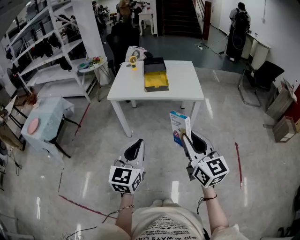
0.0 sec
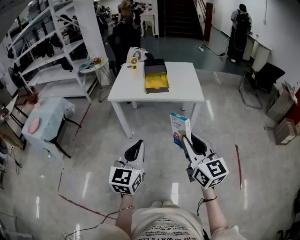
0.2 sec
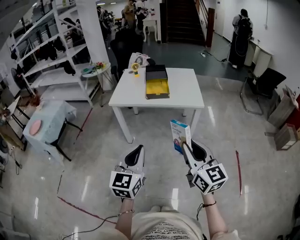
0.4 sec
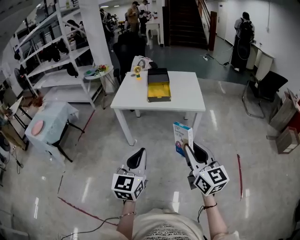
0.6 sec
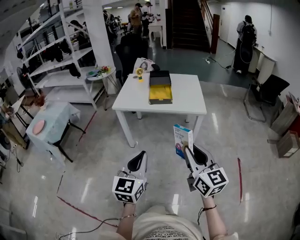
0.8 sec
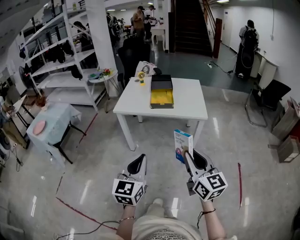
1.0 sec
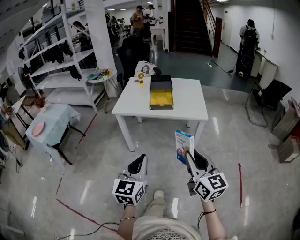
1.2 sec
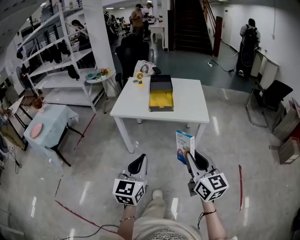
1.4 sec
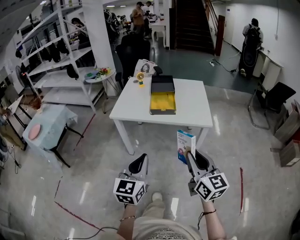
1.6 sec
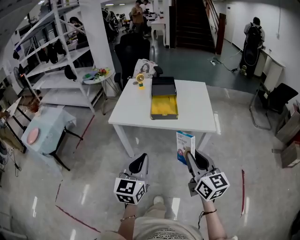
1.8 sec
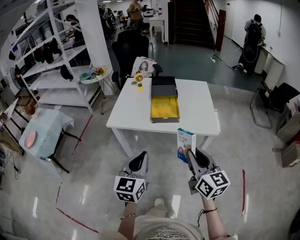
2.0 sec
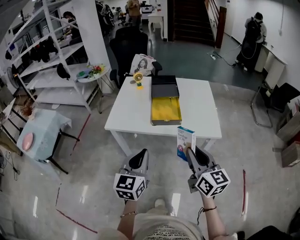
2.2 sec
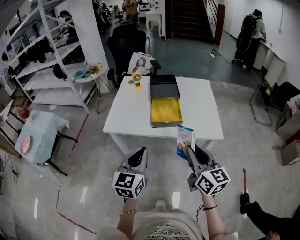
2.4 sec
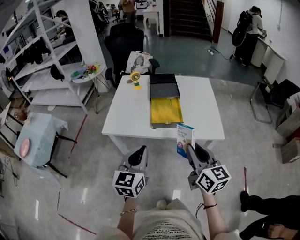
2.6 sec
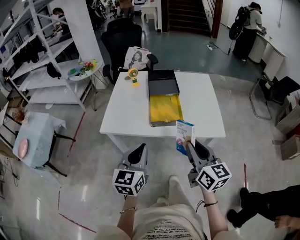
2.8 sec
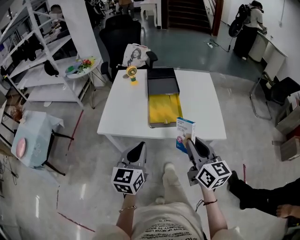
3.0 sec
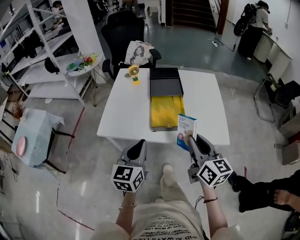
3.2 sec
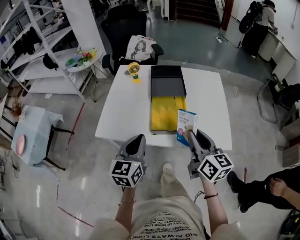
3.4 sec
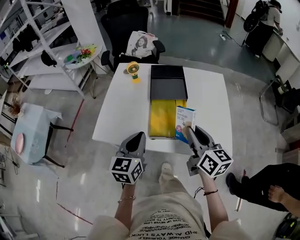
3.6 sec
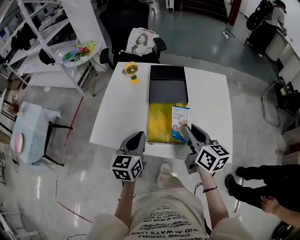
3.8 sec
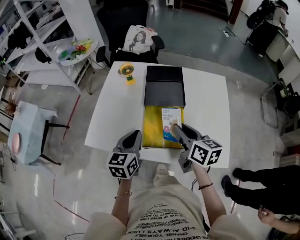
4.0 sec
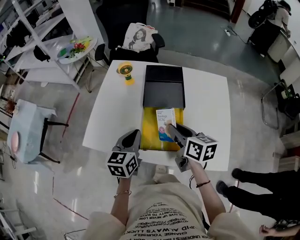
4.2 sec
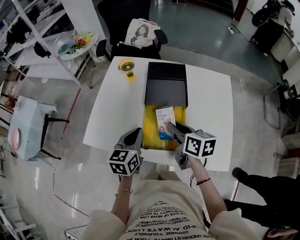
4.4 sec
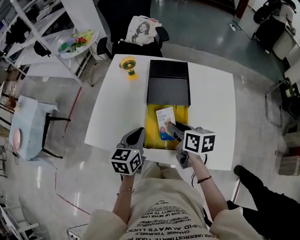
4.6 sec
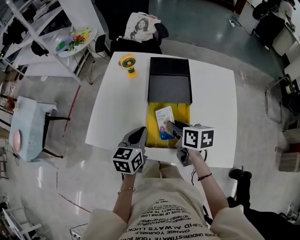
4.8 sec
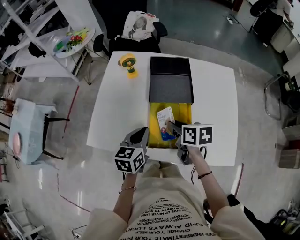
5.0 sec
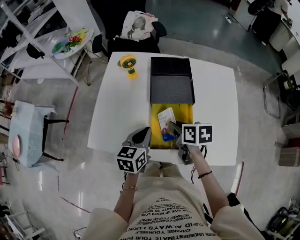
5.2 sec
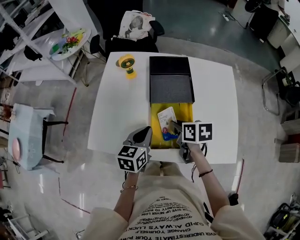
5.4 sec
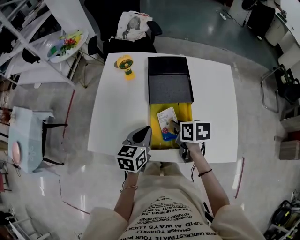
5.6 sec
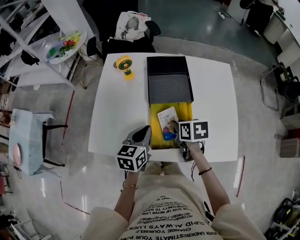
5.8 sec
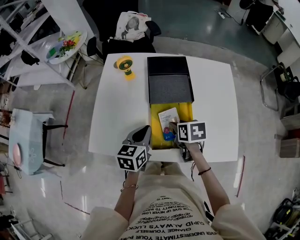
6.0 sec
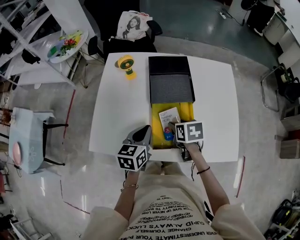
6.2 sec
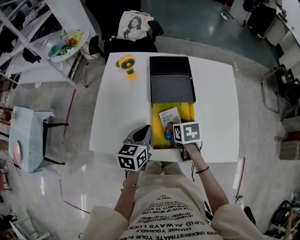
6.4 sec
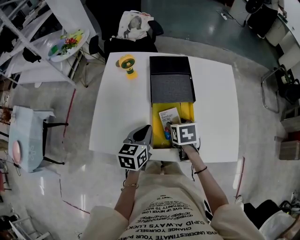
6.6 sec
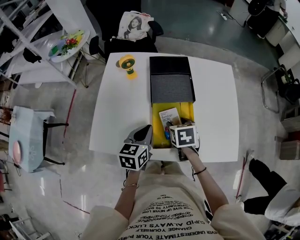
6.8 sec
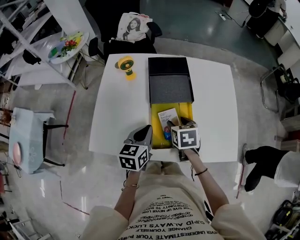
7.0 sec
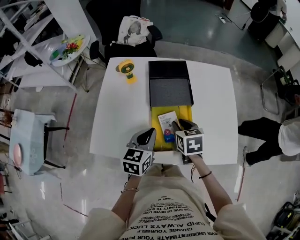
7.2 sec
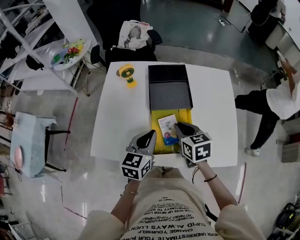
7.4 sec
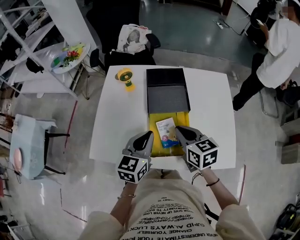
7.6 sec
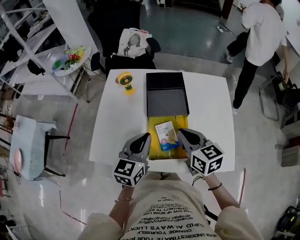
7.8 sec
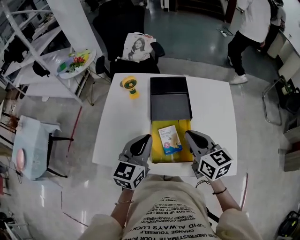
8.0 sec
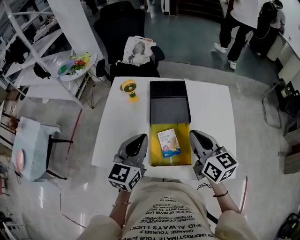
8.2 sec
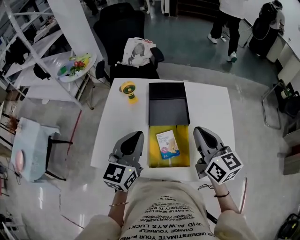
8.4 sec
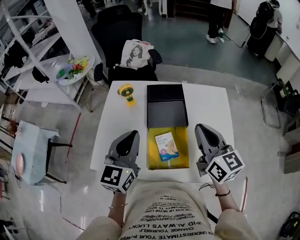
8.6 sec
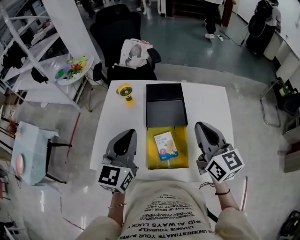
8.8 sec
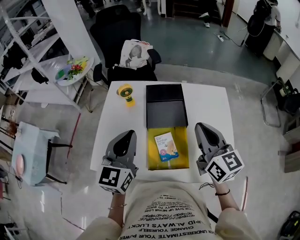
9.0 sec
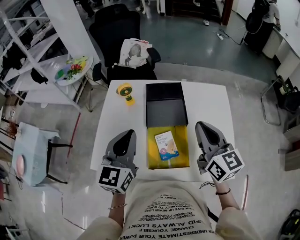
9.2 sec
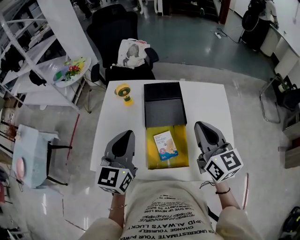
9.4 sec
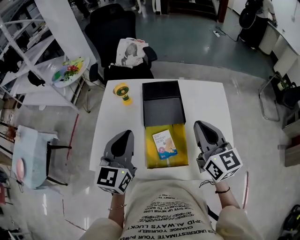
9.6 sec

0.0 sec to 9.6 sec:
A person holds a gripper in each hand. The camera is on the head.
0.0 sec to 1.6 sec: The two grippers go approximately 10 cm forward.
1.6 sec to 3.2 sec: Both grippers travel together forward, roughly 30 cm.
3.2 sec to 4.8 sec: The grippers both shift forward and downward by roughly 25 cm. The right gripper tilts its fingers approximately 30 degrees downward.
4.8 sec to 6.4 sec: The right gripper moves downward, some 5 cm, swivels approximately 30 degrees, and opens up.
6.4 sec to 8.0 sec: Both grippers move upward, some 15 cm. The left gripper turns by some 20 degrees; the right gripper tips its fingers upward by approximately 40 degrees, and closes its fingers.
8.0 sec to 9.6 sec: The right gripper heads upward and to the right, covering approximately 10 cm; the left gripper heads upward, covering roughly 5 cm.

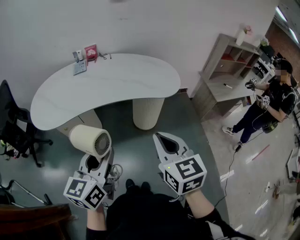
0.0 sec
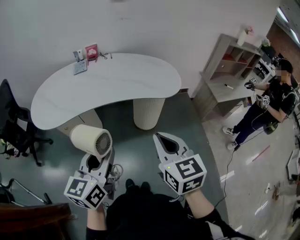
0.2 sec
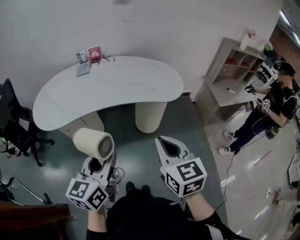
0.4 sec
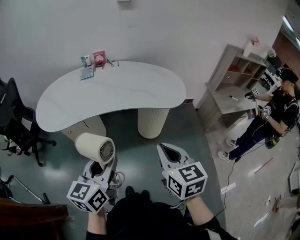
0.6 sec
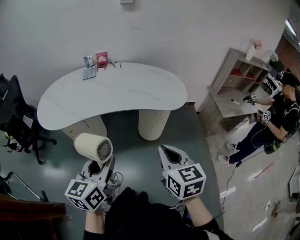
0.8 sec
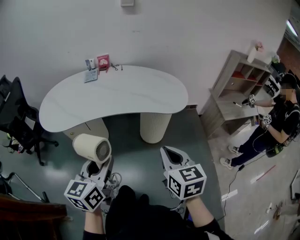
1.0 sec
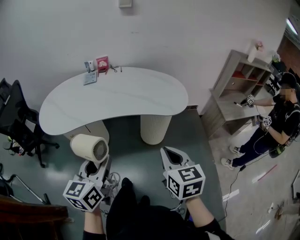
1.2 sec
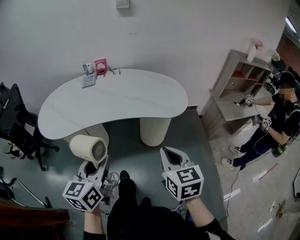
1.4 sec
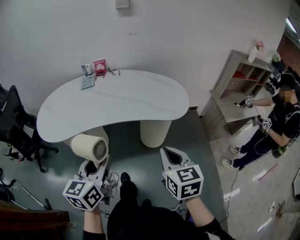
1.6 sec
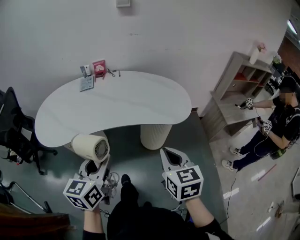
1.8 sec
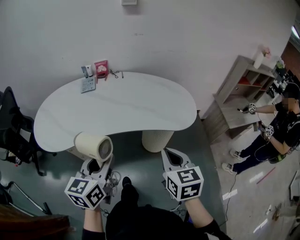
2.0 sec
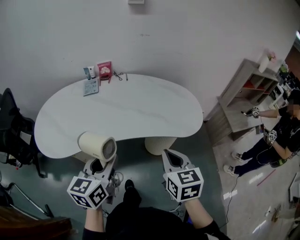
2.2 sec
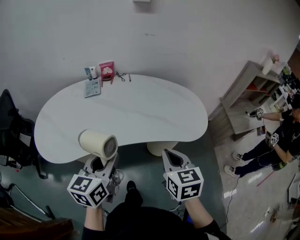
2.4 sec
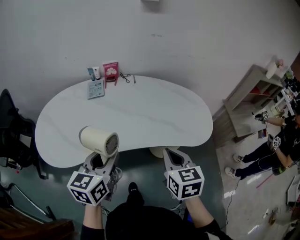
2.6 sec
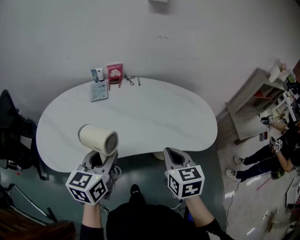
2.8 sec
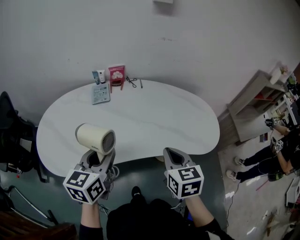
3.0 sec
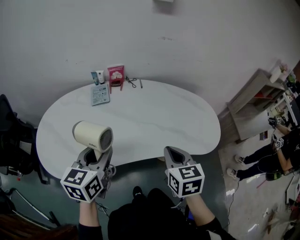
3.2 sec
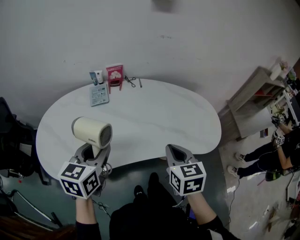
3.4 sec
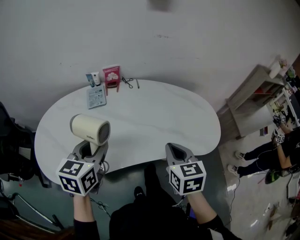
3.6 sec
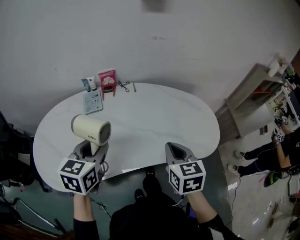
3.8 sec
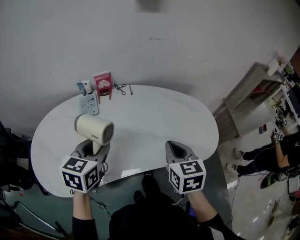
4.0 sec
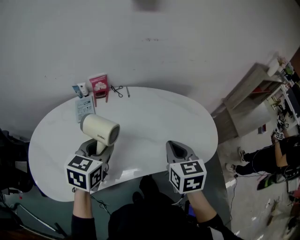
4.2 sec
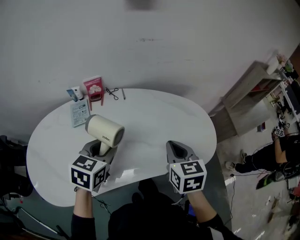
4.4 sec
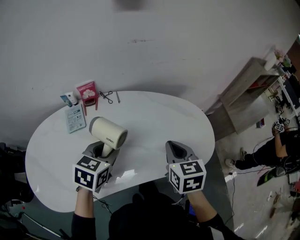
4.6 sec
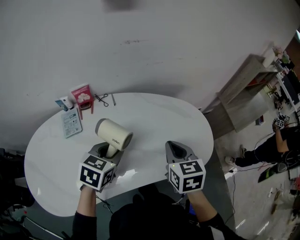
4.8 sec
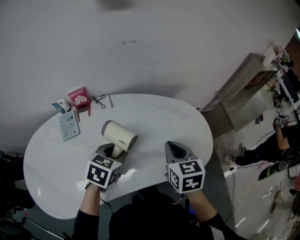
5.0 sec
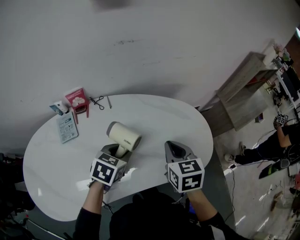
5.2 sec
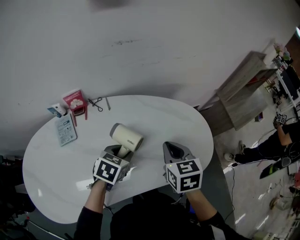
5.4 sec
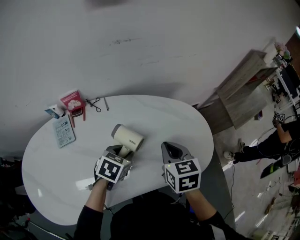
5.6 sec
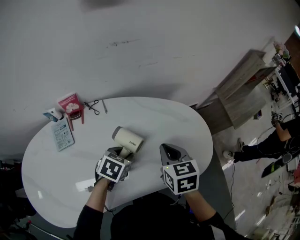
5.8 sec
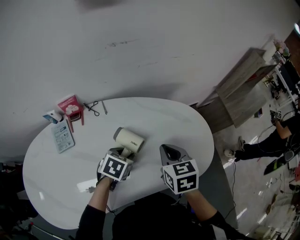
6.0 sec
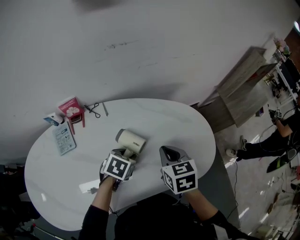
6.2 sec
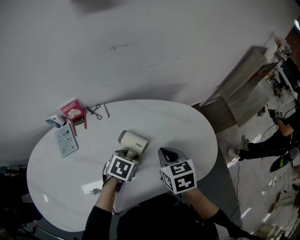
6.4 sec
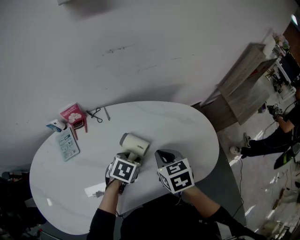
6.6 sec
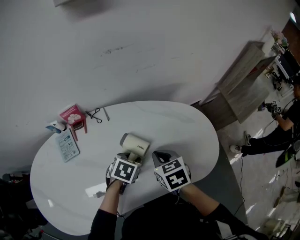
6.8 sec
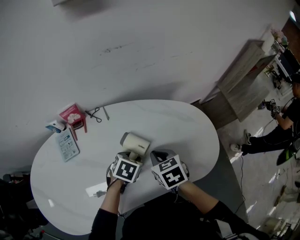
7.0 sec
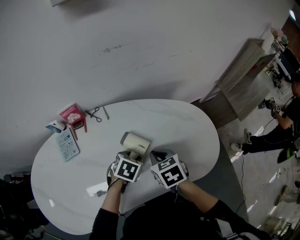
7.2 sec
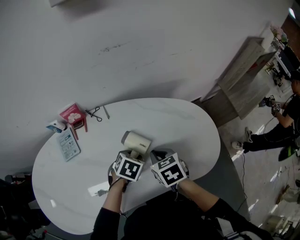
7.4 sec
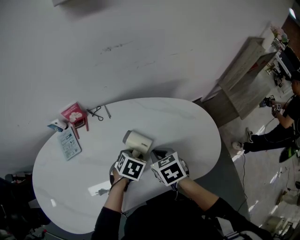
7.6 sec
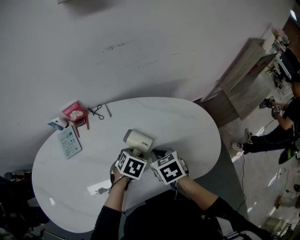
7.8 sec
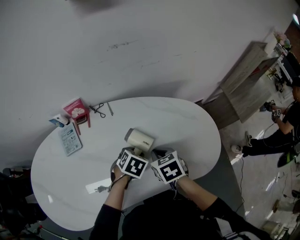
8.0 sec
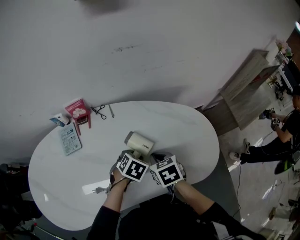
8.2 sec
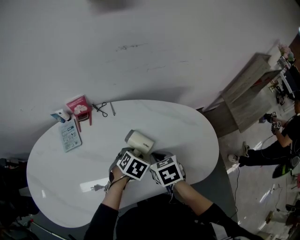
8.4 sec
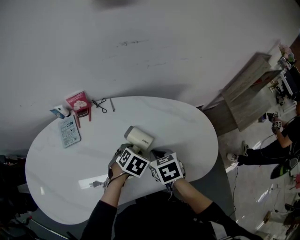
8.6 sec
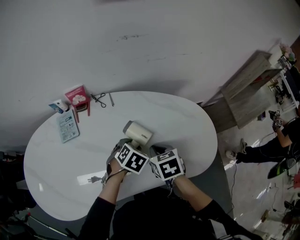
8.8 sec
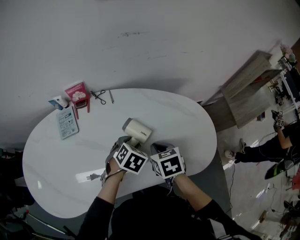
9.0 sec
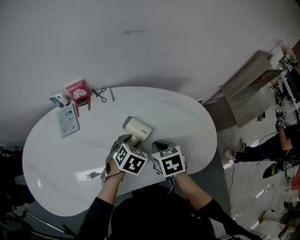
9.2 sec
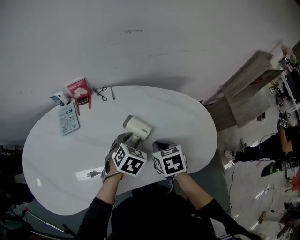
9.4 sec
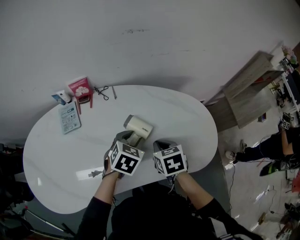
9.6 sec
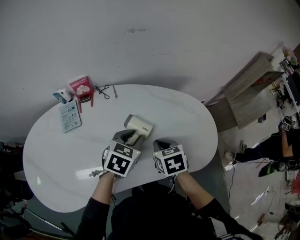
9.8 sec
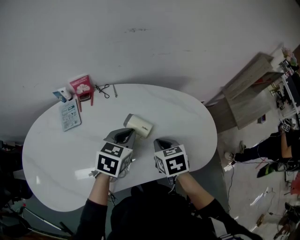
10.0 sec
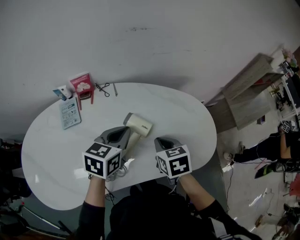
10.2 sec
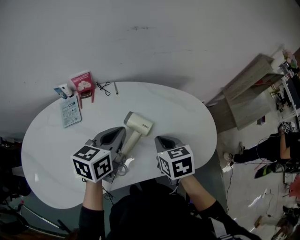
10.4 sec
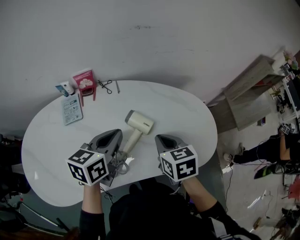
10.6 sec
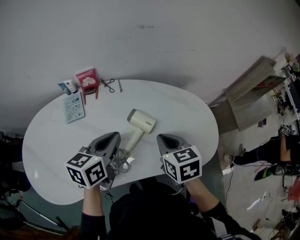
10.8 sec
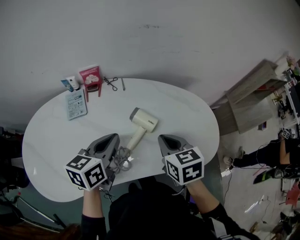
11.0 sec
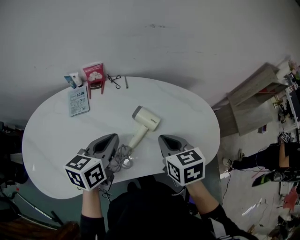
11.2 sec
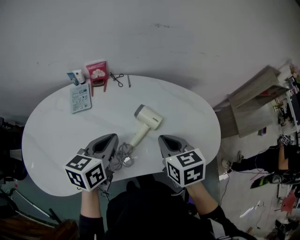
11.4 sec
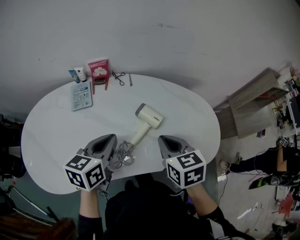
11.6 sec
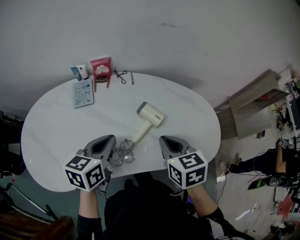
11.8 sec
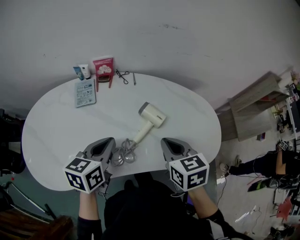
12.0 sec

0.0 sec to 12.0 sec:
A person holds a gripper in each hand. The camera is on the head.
0.0 sec to 1.6 sec: Both grippers travel together forward, roughly 5 cm.
1.6 sec to 3.0 sec: Both grippers travel together forward and to the left, some 30 cm.
3.0 sec to 4.4 sec: The two grippers go approximately 15 cm forward. The left gripper swivels some 30 degrees.
4.4 sec to 6.0 sec: The right gripper heads forward and downward, covering about 10 cm, while the left gripper moves downward, forward and to the right, roughly 20 cm, and turns by about 30 degrees.
6.0 sec to 7.6 sec: The right gripper shifts some 10 cm downward and to the left.
7.6 sec to 9.0 sec: The grippers move only a little.
9.0 sec to 10.4 sec: The right gripper heads upward, covering approximately 5 cm. The left gripper moves upward, approximately 15 cm, tilts its fingers some 40 degrees upward, and closes.
10.4 sec to 12.0 sec: The left gripper moves backward and to the left, about 15 cm. The right gripper is displaced backward and upward by approximately 5 cm.

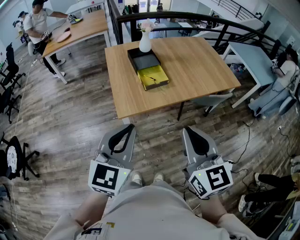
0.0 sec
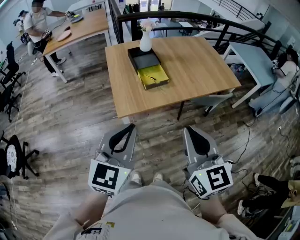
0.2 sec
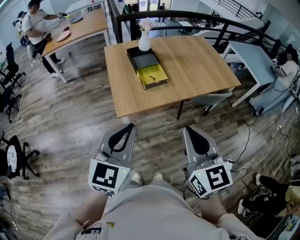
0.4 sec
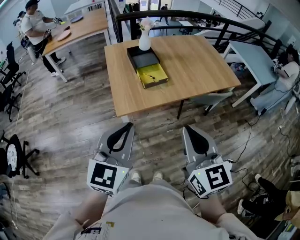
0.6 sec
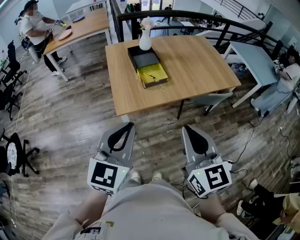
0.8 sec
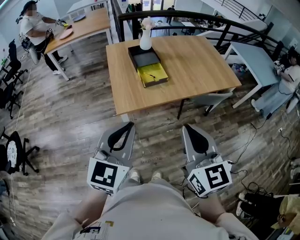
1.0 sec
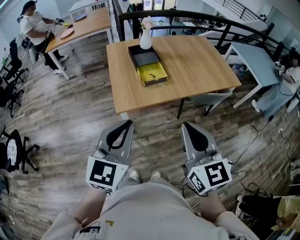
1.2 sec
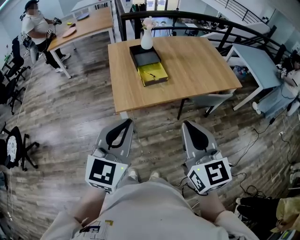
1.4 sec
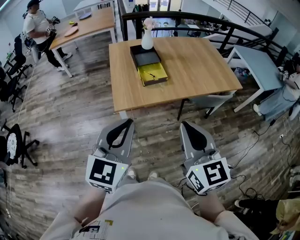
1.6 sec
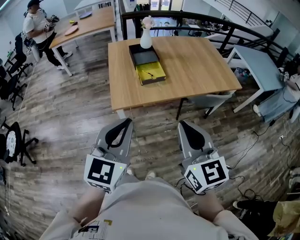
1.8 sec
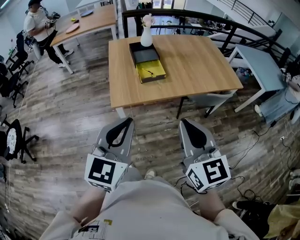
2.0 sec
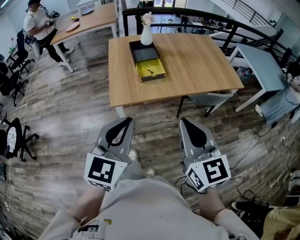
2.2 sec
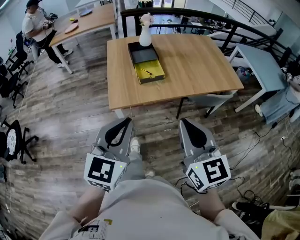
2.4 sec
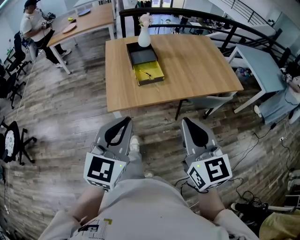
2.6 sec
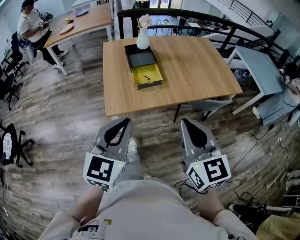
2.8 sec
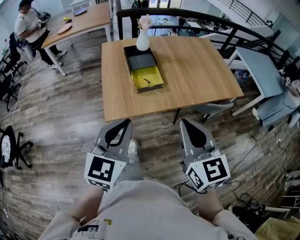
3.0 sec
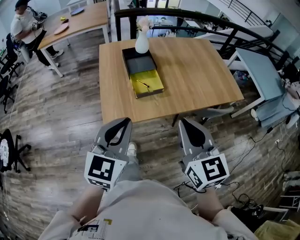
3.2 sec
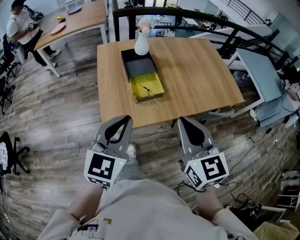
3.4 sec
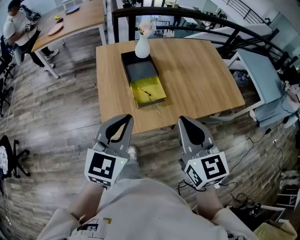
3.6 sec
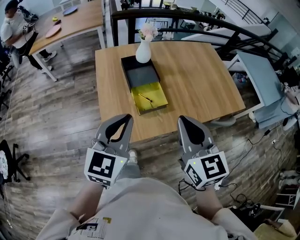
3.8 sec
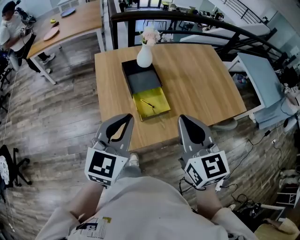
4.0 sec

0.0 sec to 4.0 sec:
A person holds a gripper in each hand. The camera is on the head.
0.0 sec to 1.4 sec: There are only small adjustments of the grippers.
1.4 sec to 2.6 sec: Both grippers move to the right, roughly 5 cm.
2.6 sec to 4.0 sec: The two grippers go some 35 cm forward.
